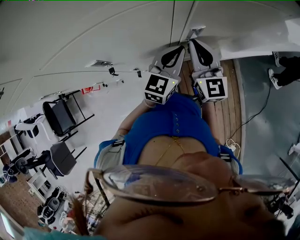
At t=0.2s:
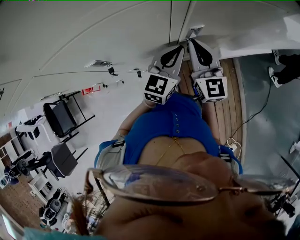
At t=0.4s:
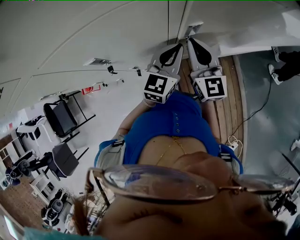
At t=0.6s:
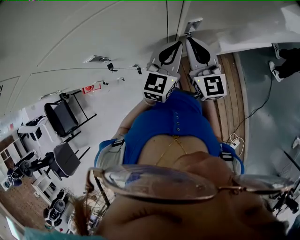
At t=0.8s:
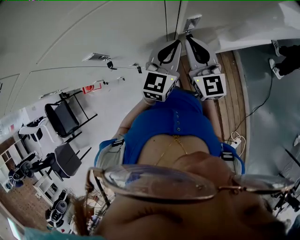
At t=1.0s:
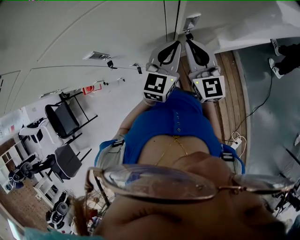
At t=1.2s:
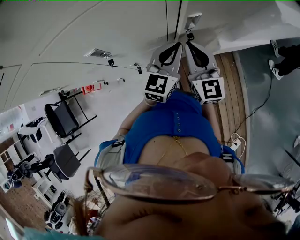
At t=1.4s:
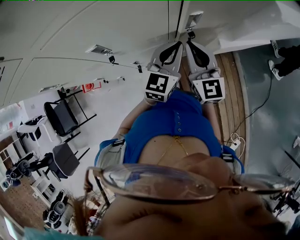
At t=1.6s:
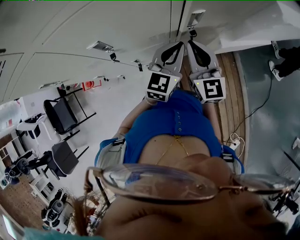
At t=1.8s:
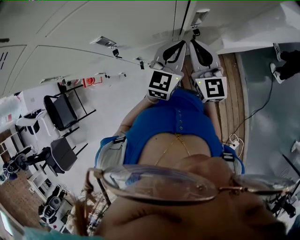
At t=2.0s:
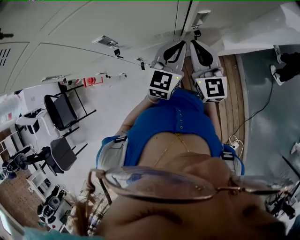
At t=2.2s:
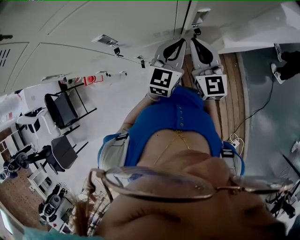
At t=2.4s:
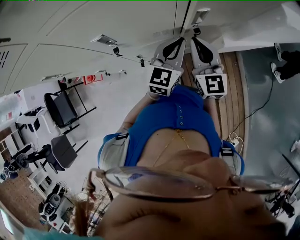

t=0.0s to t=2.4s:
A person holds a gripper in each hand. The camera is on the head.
t=0.0s to t=1.2s: The right gripper is displaced backward by approximately 5 cm.
t=1.2s to t=2.4s: There are only small adjustments of the grippers.

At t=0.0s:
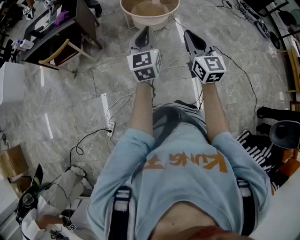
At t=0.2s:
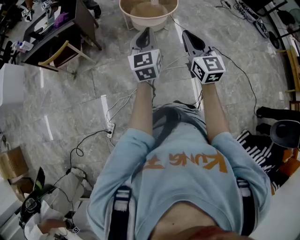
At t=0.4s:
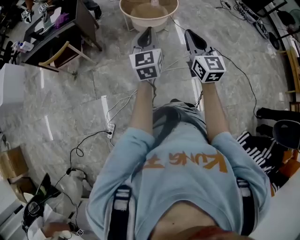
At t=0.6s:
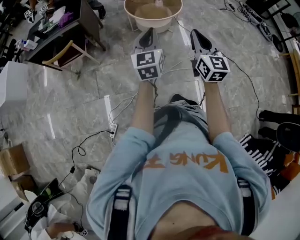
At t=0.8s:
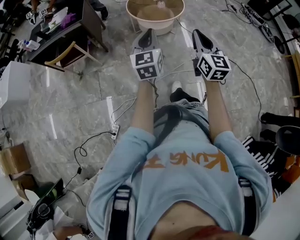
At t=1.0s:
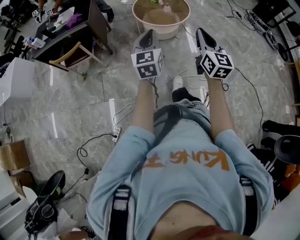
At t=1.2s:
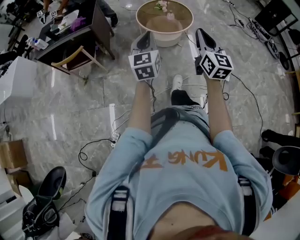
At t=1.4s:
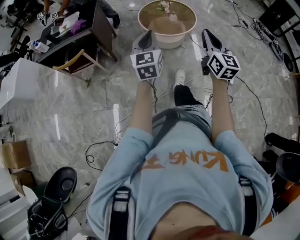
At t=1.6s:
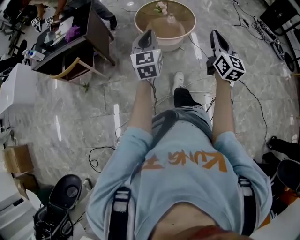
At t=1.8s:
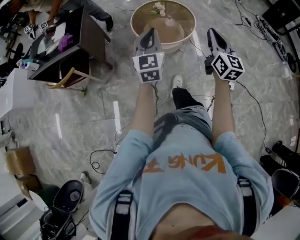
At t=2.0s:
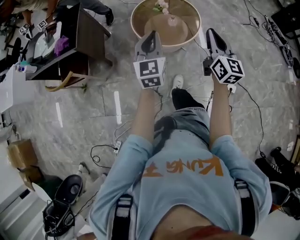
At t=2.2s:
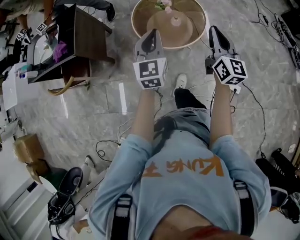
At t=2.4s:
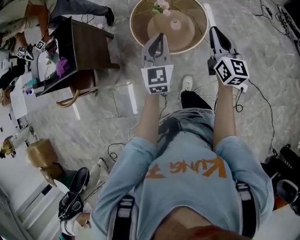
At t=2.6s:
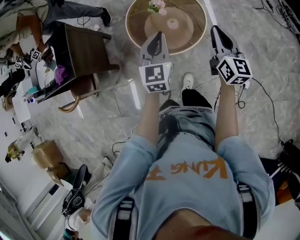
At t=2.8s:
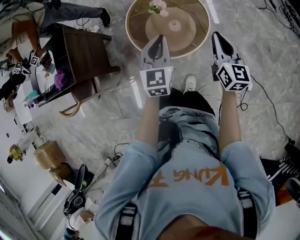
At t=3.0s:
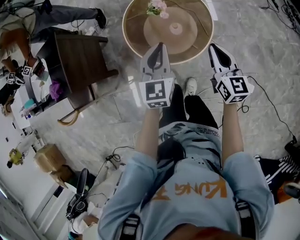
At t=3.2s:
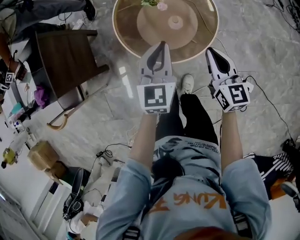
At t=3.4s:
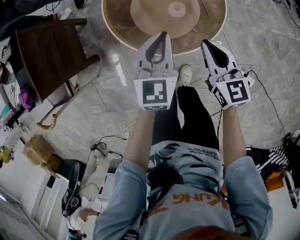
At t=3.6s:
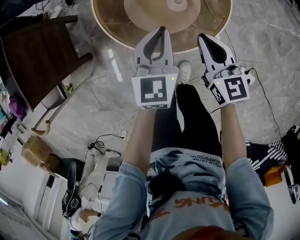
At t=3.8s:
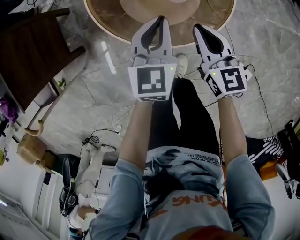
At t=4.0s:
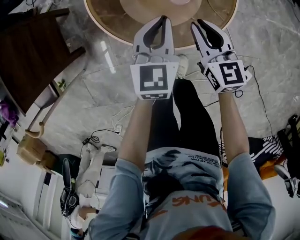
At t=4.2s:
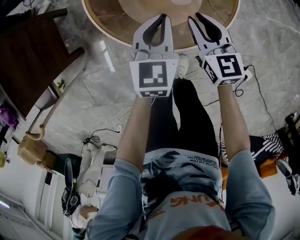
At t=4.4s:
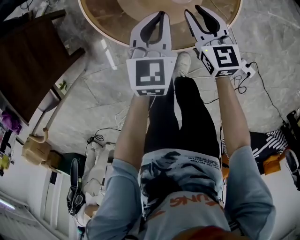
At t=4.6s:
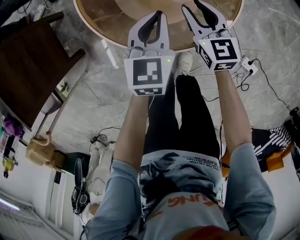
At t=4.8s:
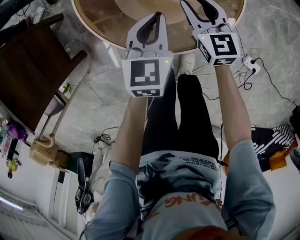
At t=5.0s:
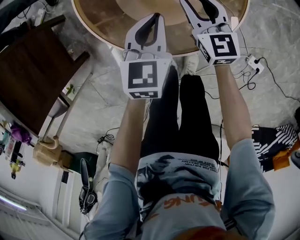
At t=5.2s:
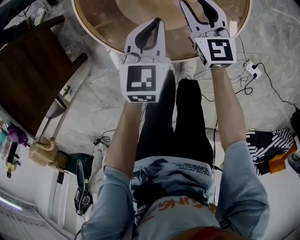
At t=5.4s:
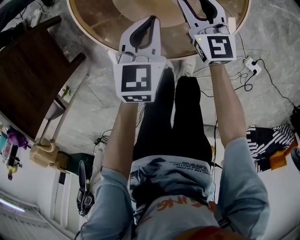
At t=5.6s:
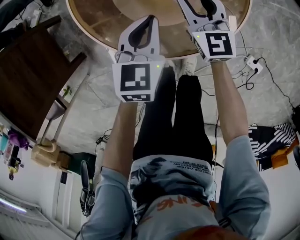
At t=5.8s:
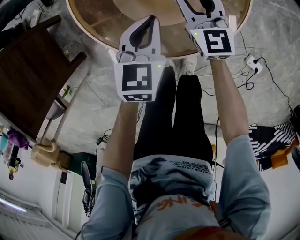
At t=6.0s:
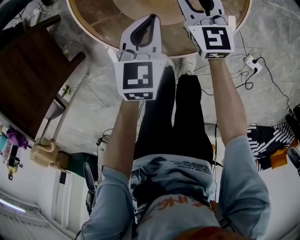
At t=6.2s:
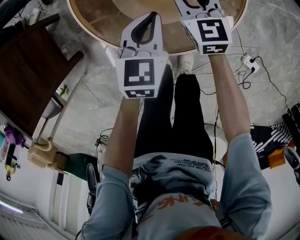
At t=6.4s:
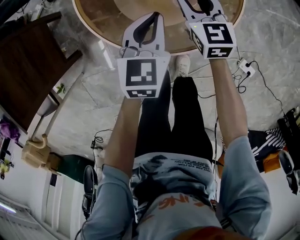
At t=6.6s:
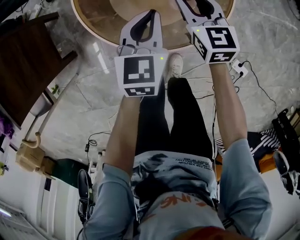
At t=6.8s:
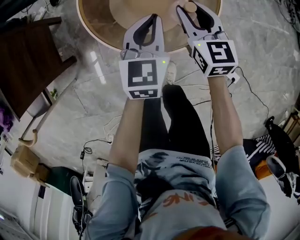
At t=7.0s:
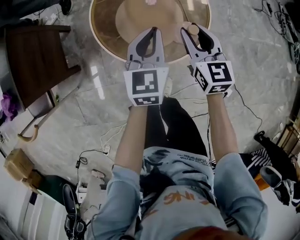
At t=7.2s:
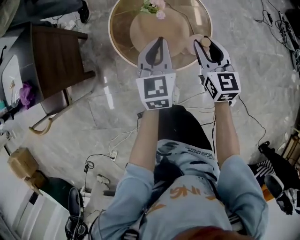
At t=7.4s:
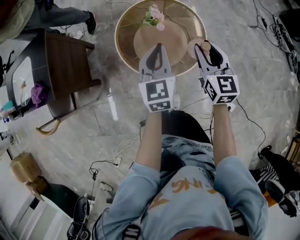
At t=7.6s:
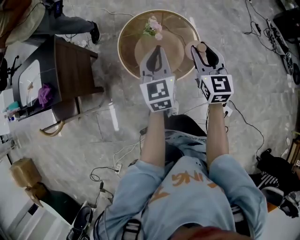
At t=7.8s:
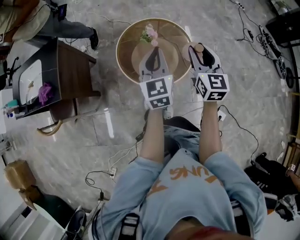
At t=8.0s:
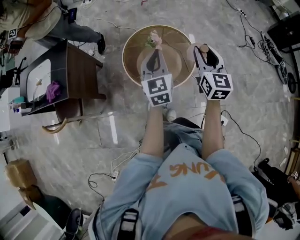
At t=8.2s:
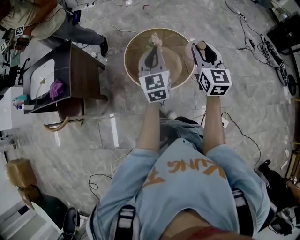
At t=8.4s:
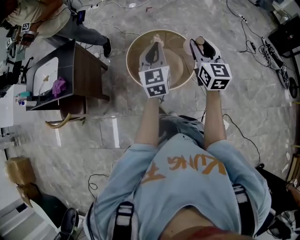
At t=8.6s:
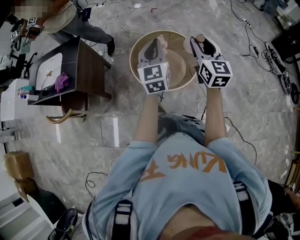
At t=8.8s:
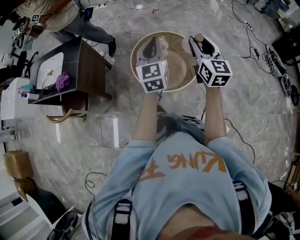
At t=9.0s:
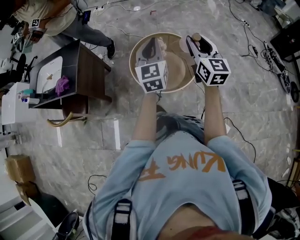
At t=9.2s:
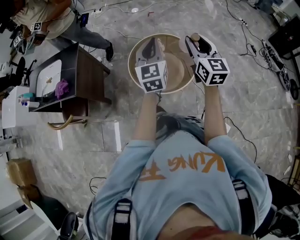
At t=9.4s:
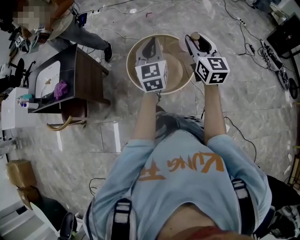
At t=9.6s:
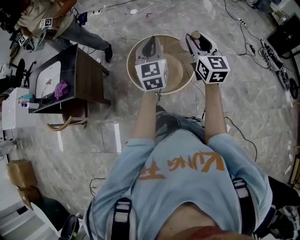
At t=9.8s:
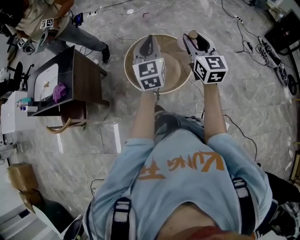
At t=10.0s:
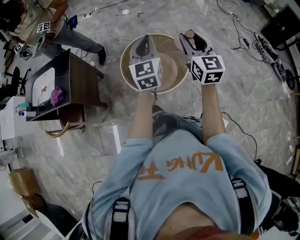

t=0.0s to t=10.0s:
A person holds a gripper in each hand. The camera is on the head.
t=0.0s to t=1.4s: The right gripper shifts approximately 15 cm forward and to the right. The left gripper shifts about 10 cm forward.
t=1.4s to t=2.8s: The pair of grippers is taken forward, some 50 cm.
t=2.8s to t=4.2s: The left gripper goes some 30 cm downward; the right gripper shifts about 35 cm downward and to the left, and changes its angle by approximately 20 degrees.
t=4.2s to t=5.8s: The right gripper heads forward and downward, covering approximately 10 cm. Meanwhile the left gripper is displaced downward by approximately 10 cm.
t=5.8s to t=7.2s: Both grippers move upward, roughly 25 cm. The left gripper rotates roughly 30 degrees.
t=7.2s to t=8.6s: Both grippers move upward, approximately 30 cm.
t=8.6s to t=10.0s: The grippers move only a little.

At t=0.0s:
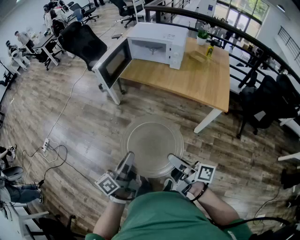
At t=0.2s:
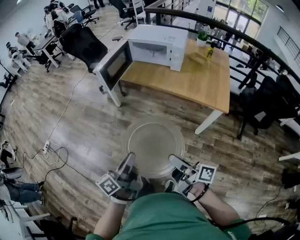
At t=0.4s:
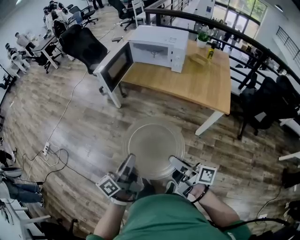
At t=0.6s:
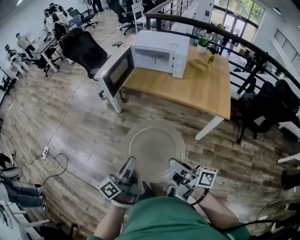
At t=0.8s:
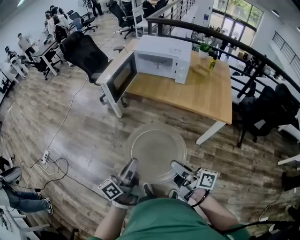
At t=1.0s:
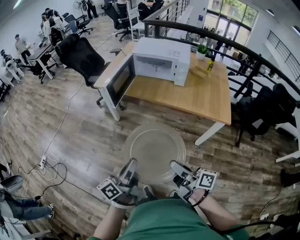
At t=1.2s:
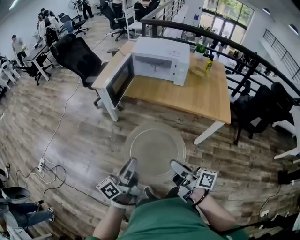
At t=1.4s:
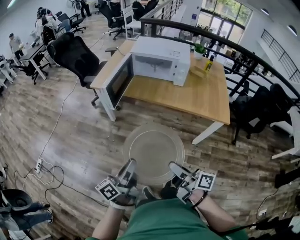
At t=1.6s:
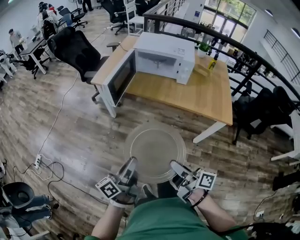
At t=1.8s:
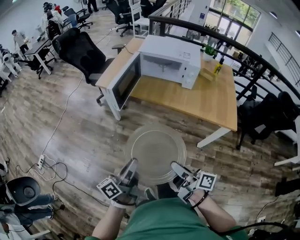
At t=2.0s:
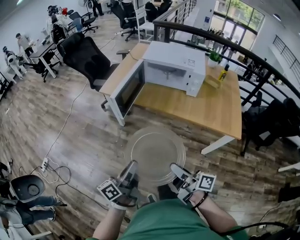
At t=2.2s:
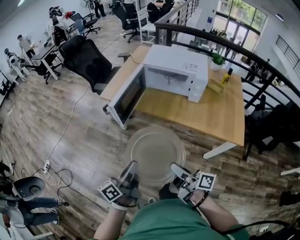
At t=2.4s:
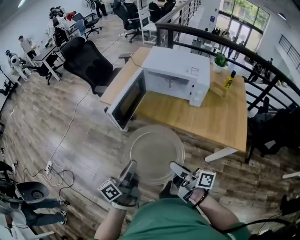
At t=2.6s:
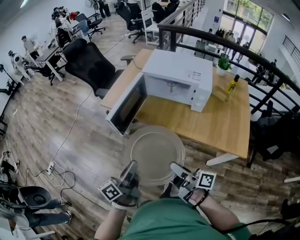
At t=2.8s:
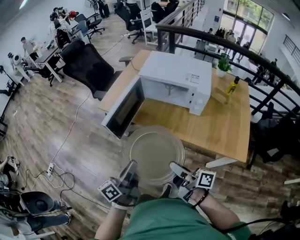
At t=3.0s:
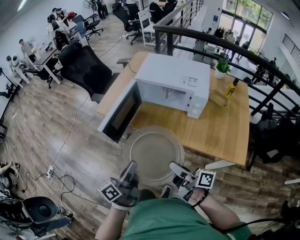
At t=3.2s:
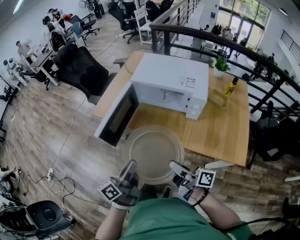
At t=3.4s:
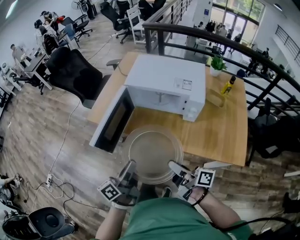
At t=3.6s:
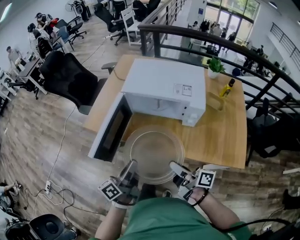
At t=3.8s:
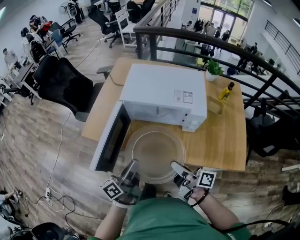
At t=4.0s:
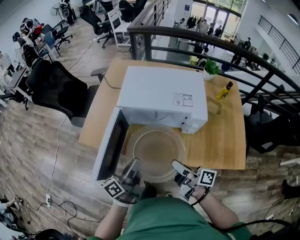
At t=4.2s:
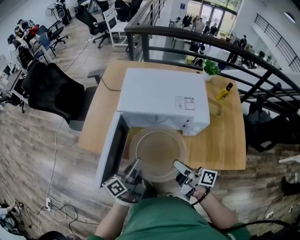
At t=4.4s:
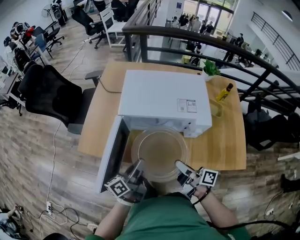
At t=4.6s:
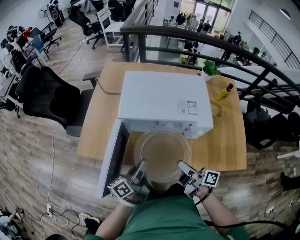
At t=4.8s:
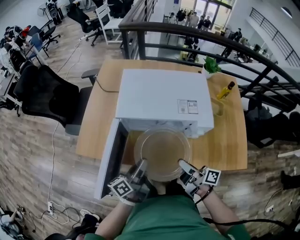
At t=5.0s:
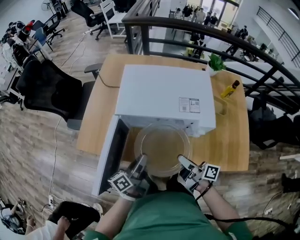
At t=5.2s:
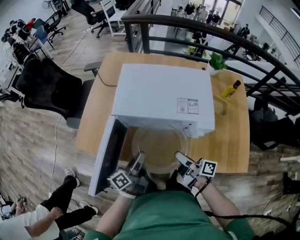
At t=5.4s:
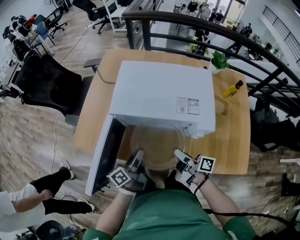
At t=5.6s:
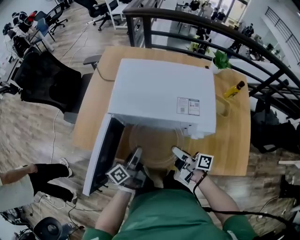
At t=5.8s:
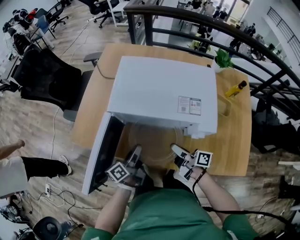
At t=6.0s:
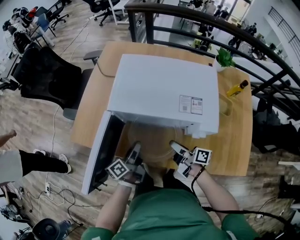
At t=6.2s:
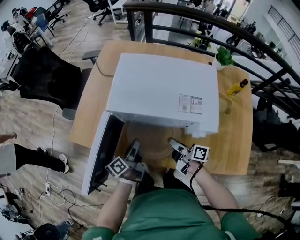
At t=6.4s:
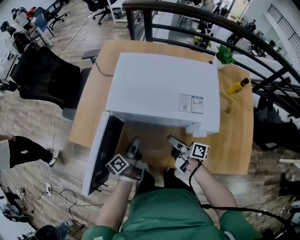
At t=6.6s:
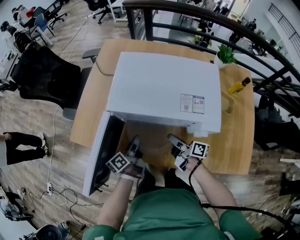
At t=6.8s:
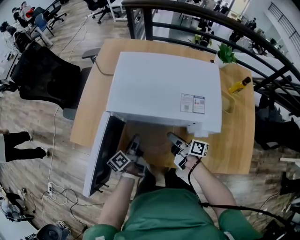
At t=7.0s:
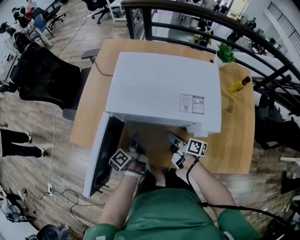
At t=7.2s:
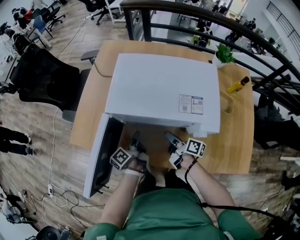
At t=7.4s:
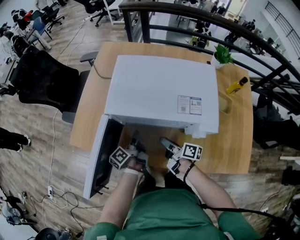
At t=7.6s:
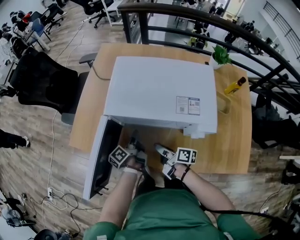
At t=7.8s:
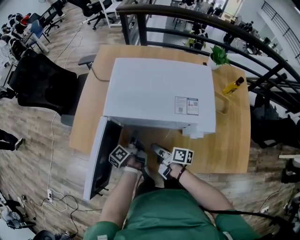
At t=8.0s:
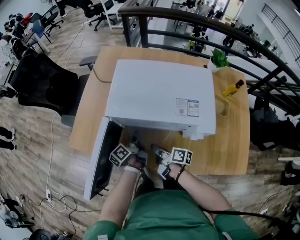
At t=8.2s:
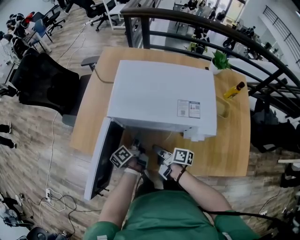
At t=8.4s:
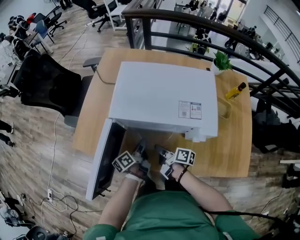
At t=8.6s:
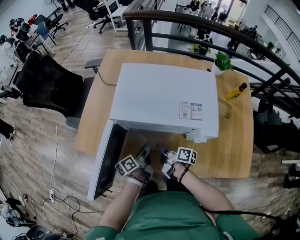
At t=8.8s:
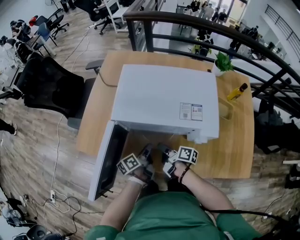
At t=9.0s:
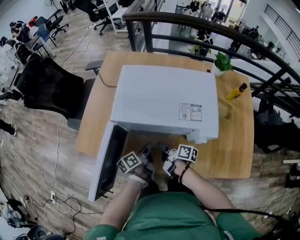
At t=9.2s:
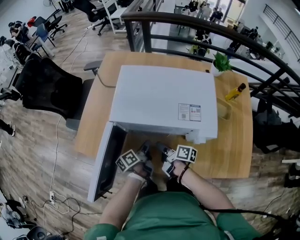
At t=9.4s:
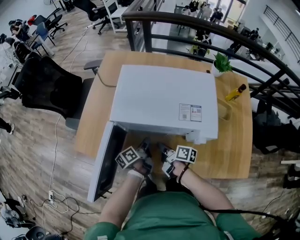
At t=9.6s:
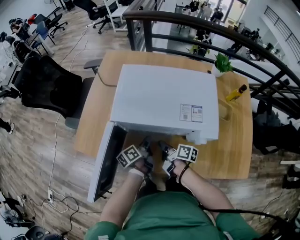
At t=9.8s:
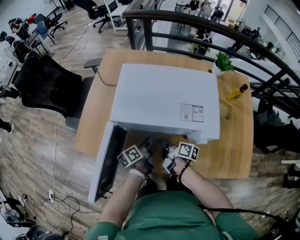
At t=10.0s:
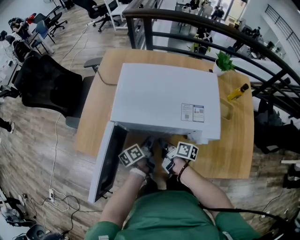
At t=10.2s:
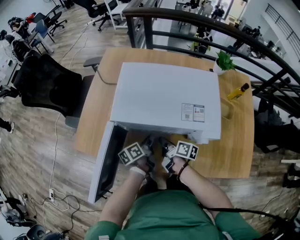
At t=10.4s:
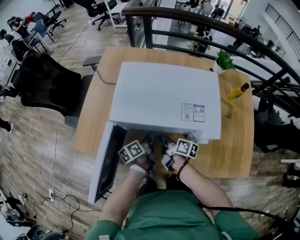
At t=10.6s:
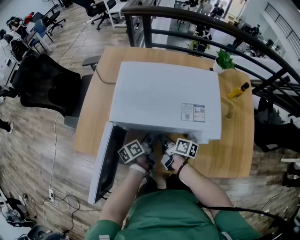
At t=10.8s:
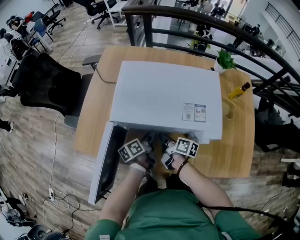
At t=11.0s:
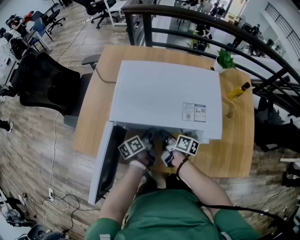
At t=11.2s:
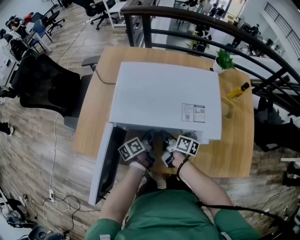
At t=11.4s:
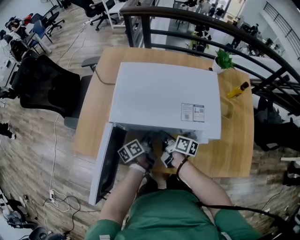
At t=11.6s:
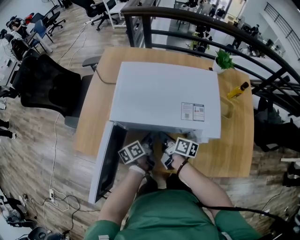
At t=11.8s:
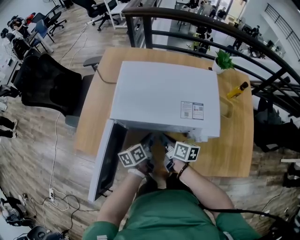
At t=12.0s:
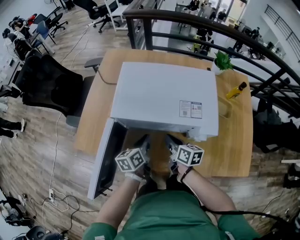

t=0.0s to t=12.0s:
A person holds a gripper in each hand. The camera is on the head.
t=0.0s to t=1.6s: The right gripper shifts approximately 15 cm to the left and forward. The left gripper goes roughly 15 cm forward and to the left.
t=1.6s to t=3.0s: The grippers both shift forward by roughly 25 cm.
t=3.0s to t=4.4s: Both grippers move forward, approximately 25 cm. The left gripper rotates approximately 20 degrees.
t=4.4s to t=6.0s: The right gripper shifts some 15 cm forward and downward, while the left gripper moves downward and forward, approximately 15 cm.
t=6.0s to t=7.6s: The right gripper travels to the left by roughly 5 cm. Meanwhile the left gripper travels forward by about 5 cm.
t=7.6s to t=9.0s: The left gripper shifts by approximately 5 cm.
t=9.0s to t=10.4s: The left gripper shifts by about 5 cm.
t=10.4s to t=12.0s: The two grippers go some 5 cm upward. The left gripper turns by about 30 degrees; the right gripper turns by some 30 degrees.
